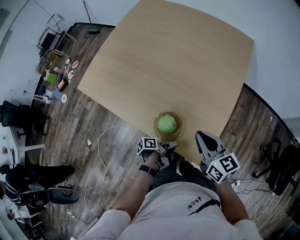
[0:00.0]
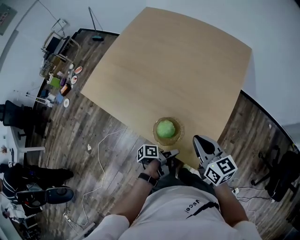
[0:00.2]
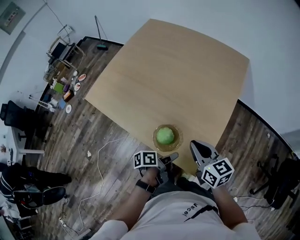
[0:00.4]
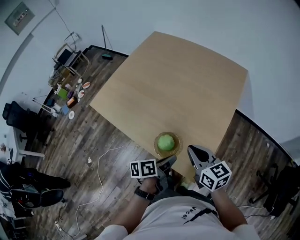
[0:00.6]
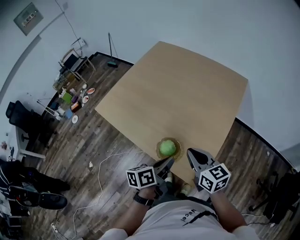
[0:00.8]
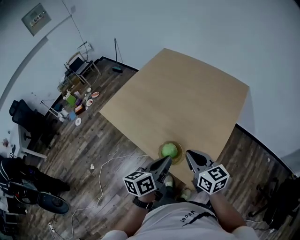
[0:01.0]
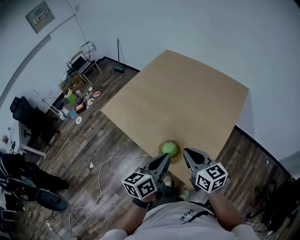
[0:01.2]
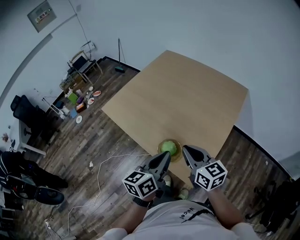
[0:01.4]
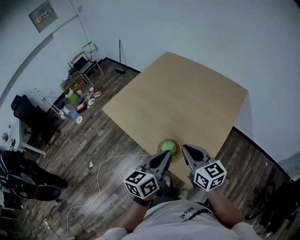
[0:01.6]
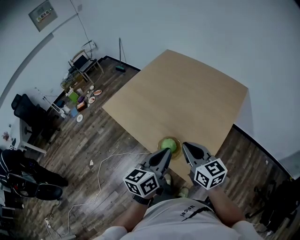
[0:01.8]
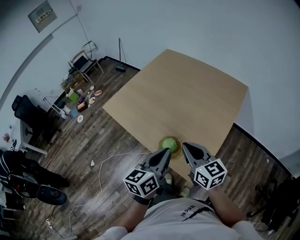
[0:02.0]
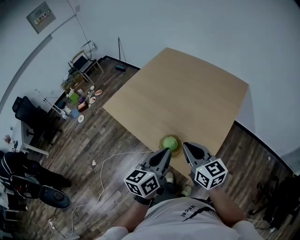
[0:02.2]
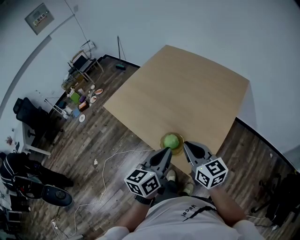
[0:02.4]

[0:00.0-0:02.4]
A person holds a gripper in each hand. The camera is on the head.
0:00.0 to 0:01.2: The right gripper shifts some 10 cm upward.

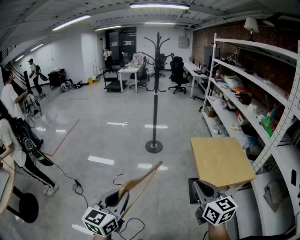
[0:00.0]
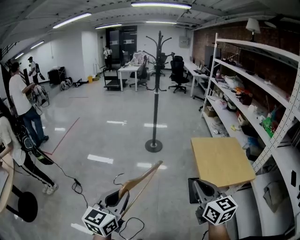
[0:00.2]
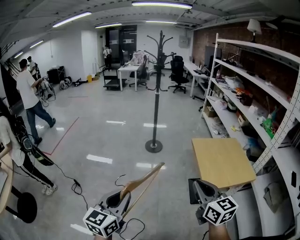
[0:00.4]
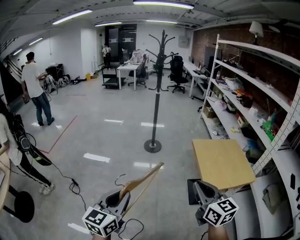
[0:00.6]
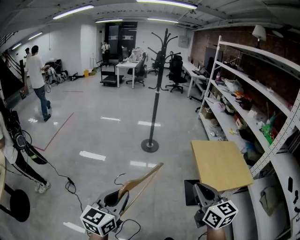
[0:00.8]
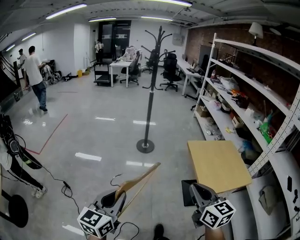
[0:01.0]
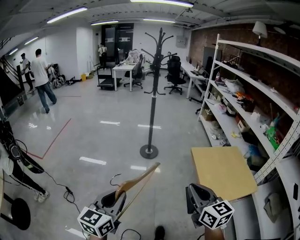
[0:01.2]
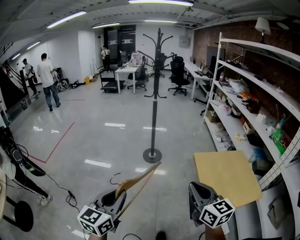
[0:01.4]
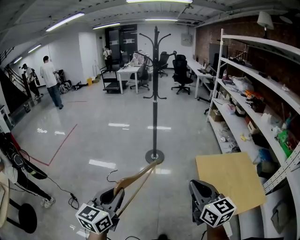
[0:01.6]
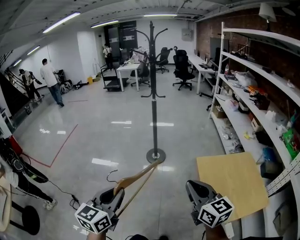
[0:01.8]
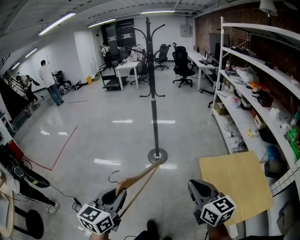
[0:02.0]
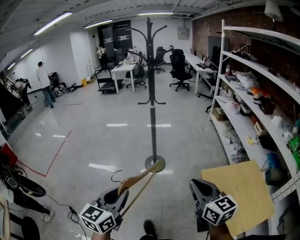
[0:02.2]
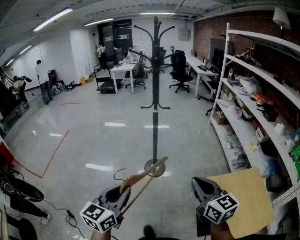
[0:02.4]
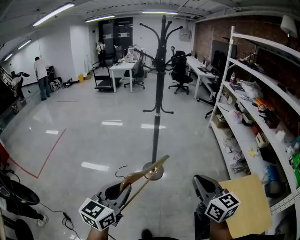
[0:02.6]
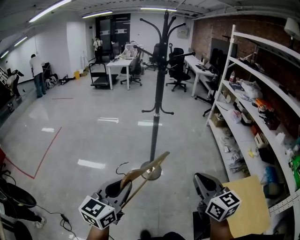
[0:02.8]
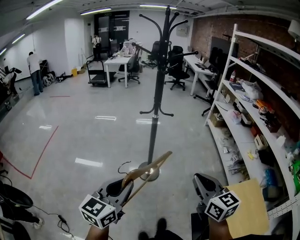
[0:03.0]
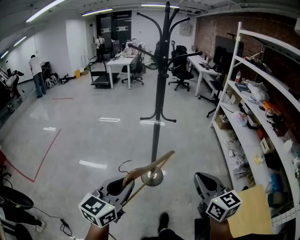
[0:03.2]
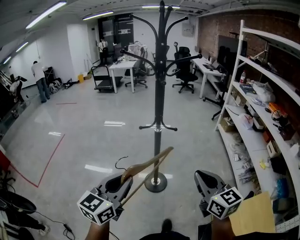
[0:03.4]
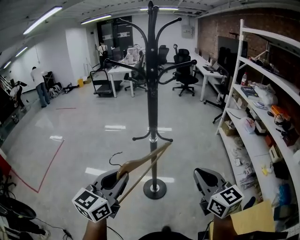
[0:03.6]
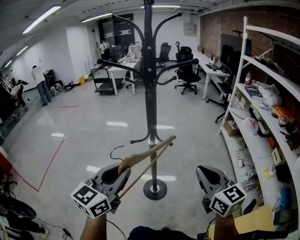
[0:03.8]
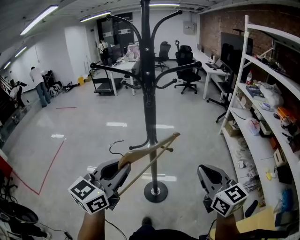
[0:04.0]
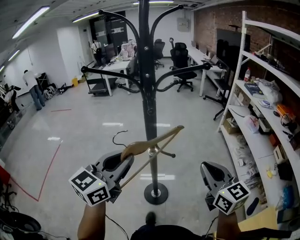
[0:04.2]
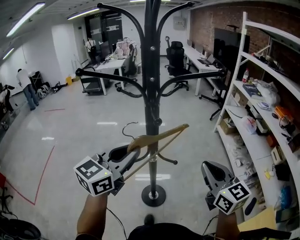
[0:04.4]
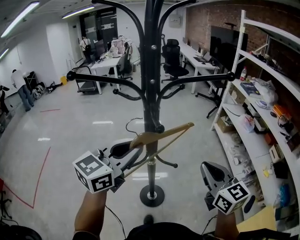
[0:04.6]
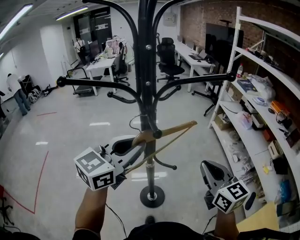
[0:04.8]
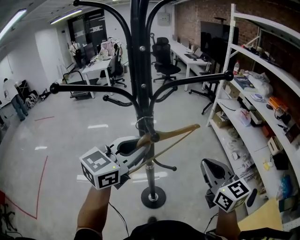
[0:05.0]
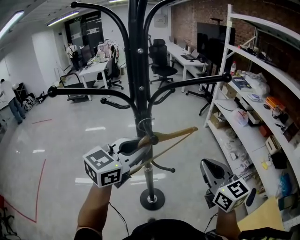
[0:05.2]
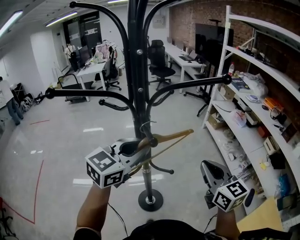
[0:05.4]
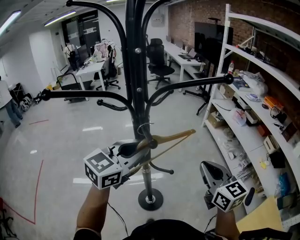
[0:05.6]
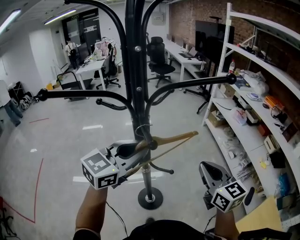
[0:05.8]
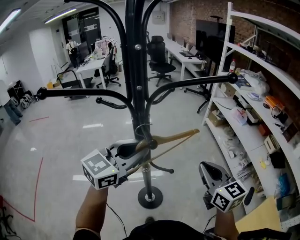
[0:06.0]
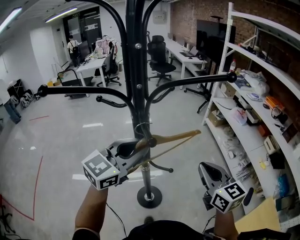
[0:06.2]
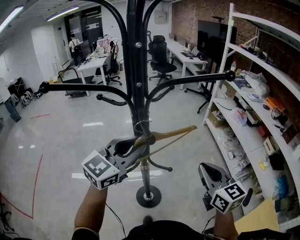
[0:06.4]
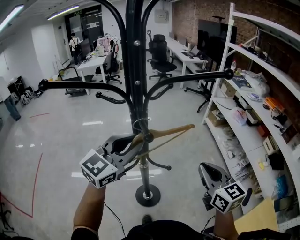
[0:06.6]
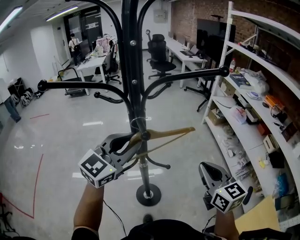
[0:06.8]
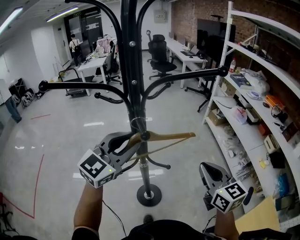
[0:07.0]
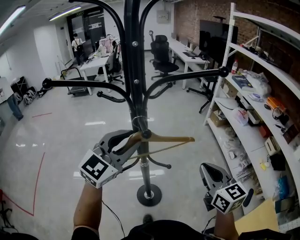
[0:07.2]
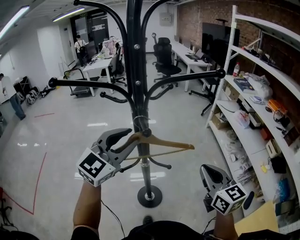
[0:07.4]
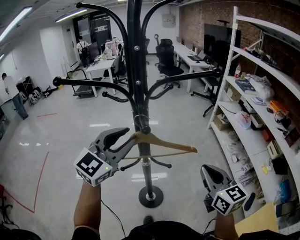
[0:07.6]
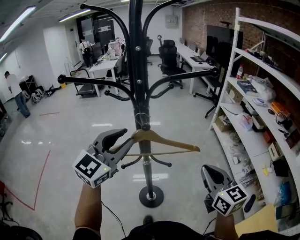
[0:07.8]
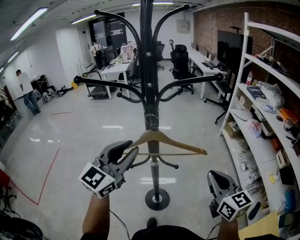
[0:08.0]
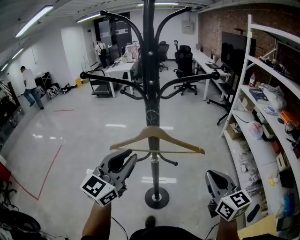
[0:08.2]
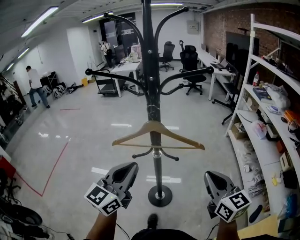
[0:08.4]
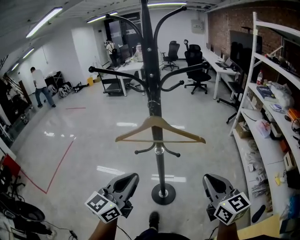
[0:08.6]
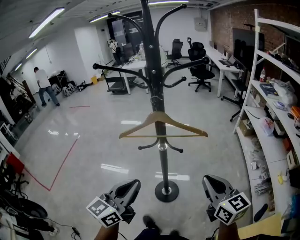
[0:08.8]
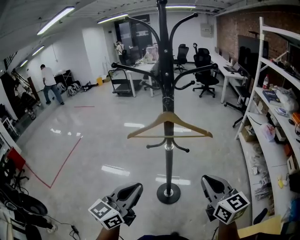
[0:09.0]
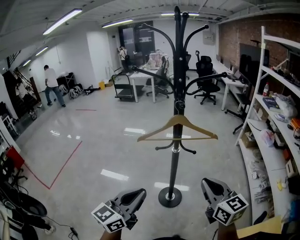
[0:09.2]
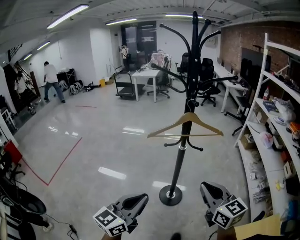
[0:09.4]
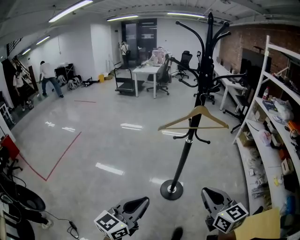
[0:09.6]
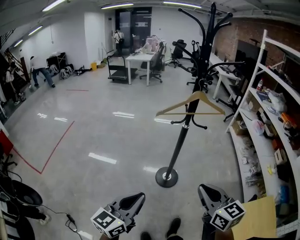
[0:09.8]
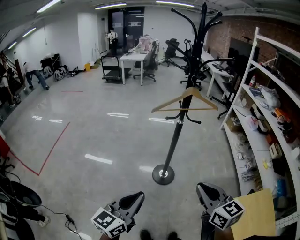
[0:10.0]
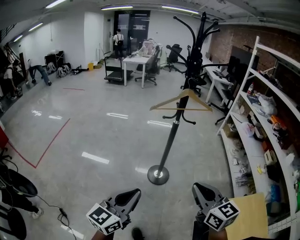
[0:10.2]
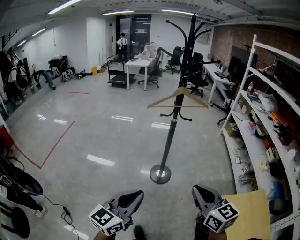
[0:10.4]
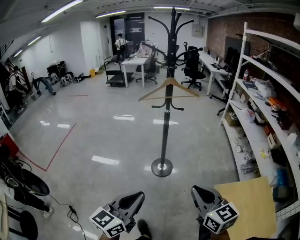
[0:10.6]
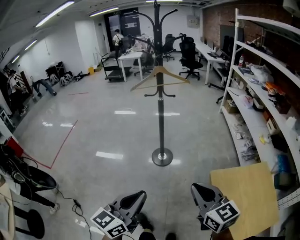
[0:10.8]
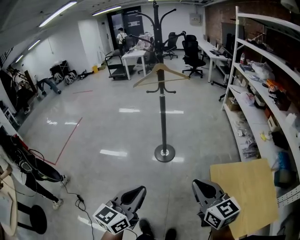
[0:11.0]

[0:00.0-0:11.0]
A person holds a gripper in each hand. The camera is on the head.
0:00.0 to 0:01.6: The grippers both shift forward by some 25 cm.
0:01.6 to 0:03.2: The two grippers travel together, forward, some 40 cm.
0:03.2 to 0:04.8: The two grippers go about 35 cm forward. The left gripper changes its angle by some 20 degrees.
0:04.8 to 0:06.2: The left gripper changes place by roughly 5 cm.
0:06.2 to 0:07.8: The left gripper moves roughly 5 cm, and rotates about 20 degrees.
0:07.8 to 0:09.4: The left gripper moves backward, approximately 35 cm, turns by roughly 30 degrees, and closes up, while the right gripper is displaced backward and to the left by some 20 cm.
0:09.4 to 0:11.0: The two grippers go approximately 35 cm backward.

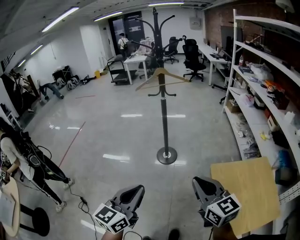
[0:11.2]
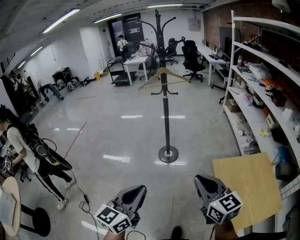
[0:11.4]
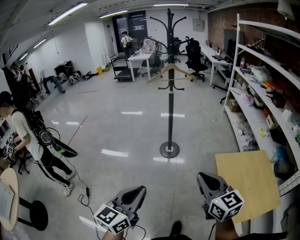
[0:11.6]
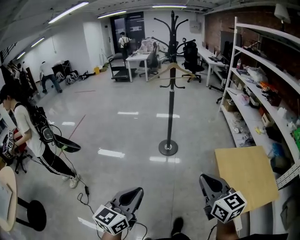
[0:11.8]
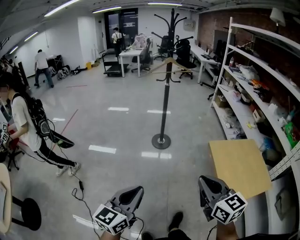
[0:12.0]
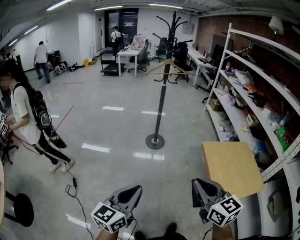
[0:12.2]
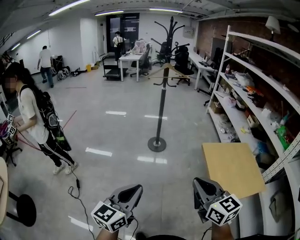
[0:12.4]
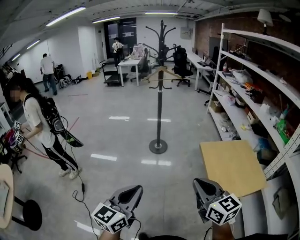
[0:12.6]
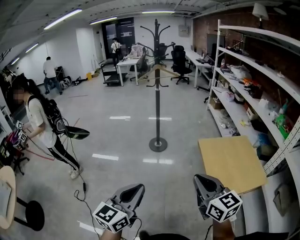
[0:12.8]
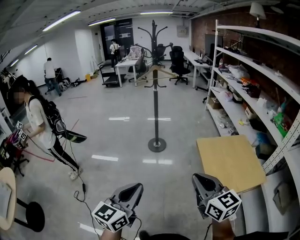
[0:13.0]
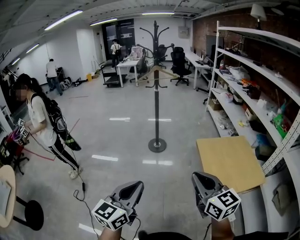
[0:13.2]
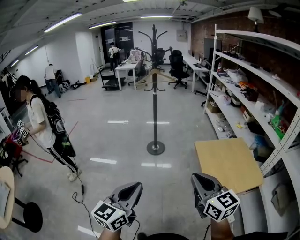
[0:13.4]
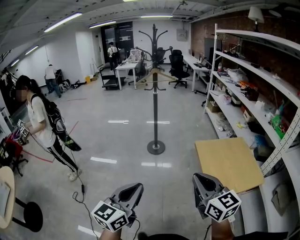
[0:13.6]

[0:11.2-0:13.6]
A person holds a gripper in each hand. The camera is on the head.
0:11.2 to 0:12.4: The grippers both shift backward by about 25 cm.
0:12.4 to 0:13.6: The grippers both shift to the right by roughly 10 cm.

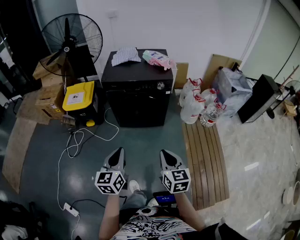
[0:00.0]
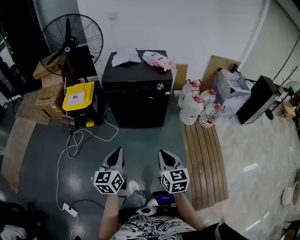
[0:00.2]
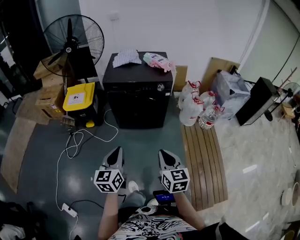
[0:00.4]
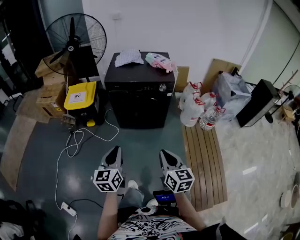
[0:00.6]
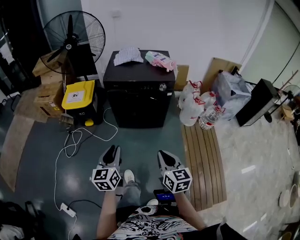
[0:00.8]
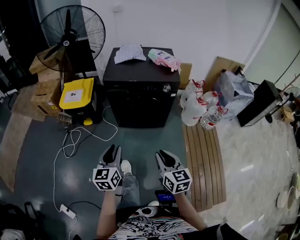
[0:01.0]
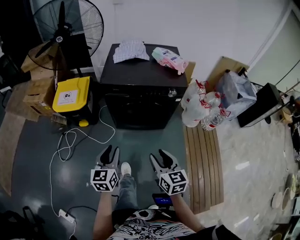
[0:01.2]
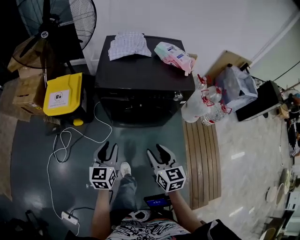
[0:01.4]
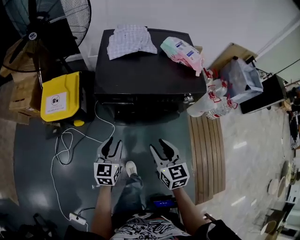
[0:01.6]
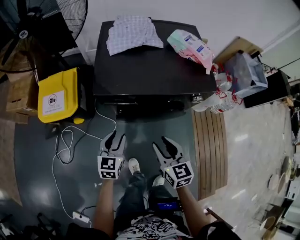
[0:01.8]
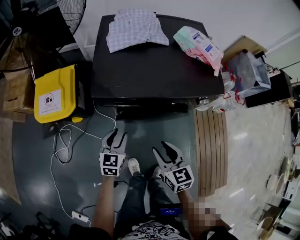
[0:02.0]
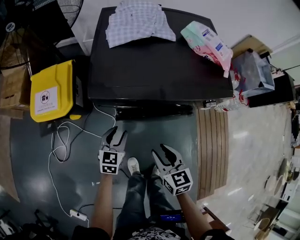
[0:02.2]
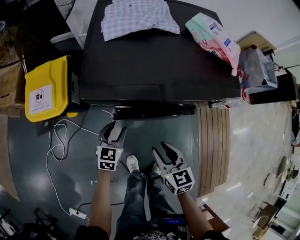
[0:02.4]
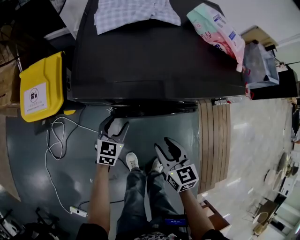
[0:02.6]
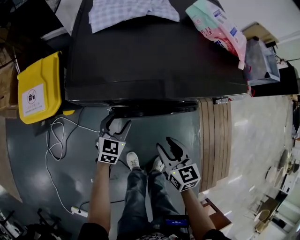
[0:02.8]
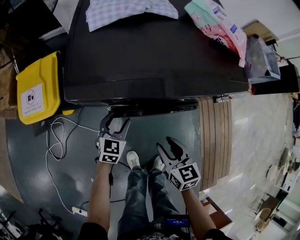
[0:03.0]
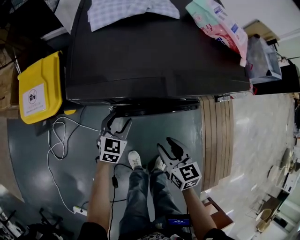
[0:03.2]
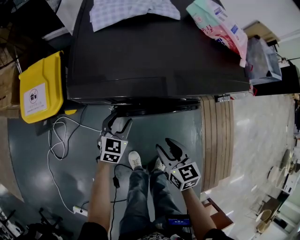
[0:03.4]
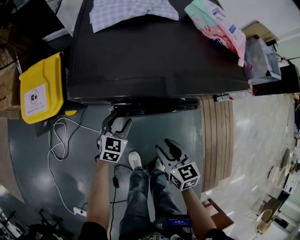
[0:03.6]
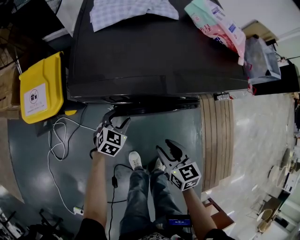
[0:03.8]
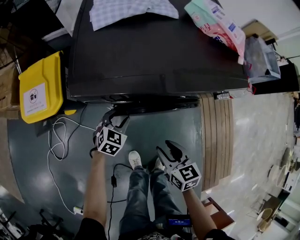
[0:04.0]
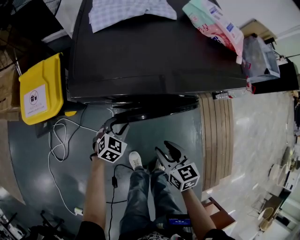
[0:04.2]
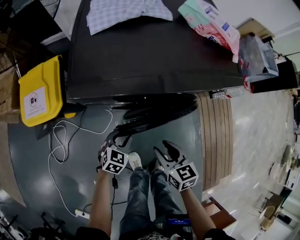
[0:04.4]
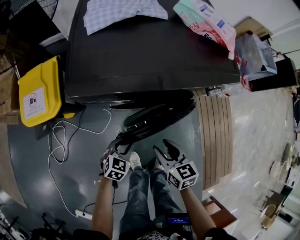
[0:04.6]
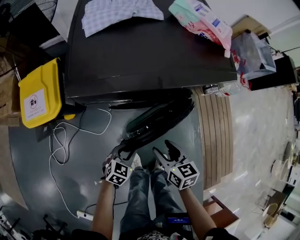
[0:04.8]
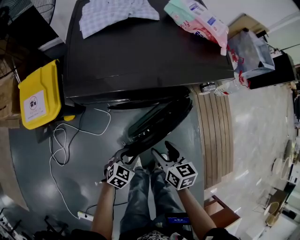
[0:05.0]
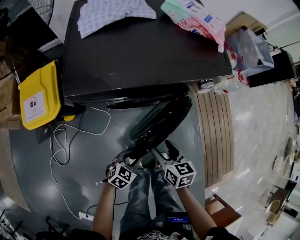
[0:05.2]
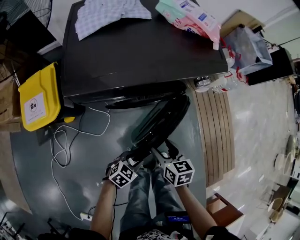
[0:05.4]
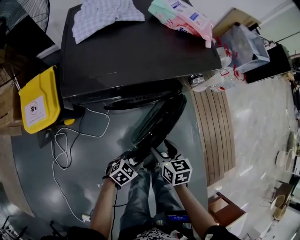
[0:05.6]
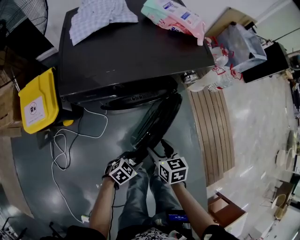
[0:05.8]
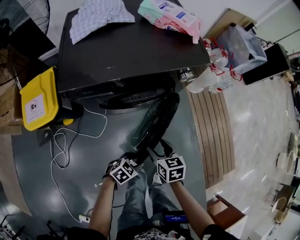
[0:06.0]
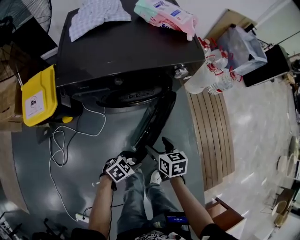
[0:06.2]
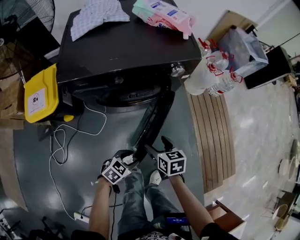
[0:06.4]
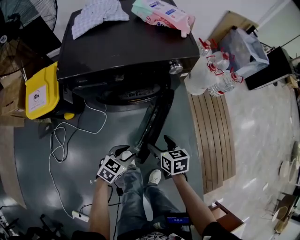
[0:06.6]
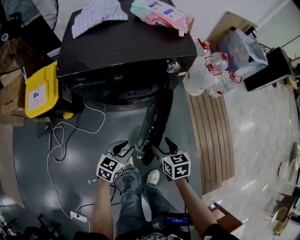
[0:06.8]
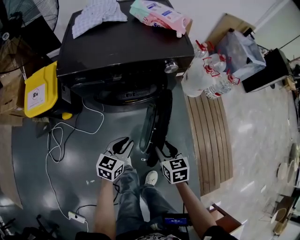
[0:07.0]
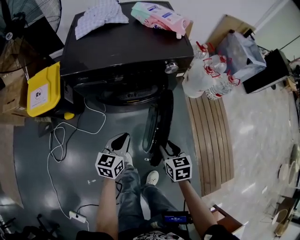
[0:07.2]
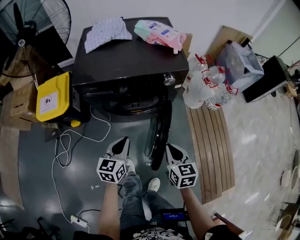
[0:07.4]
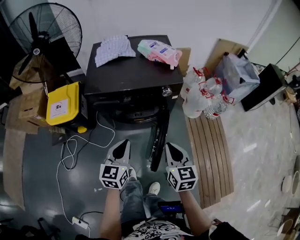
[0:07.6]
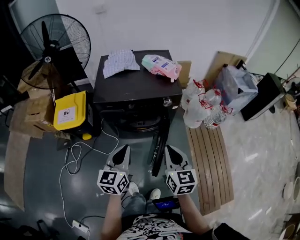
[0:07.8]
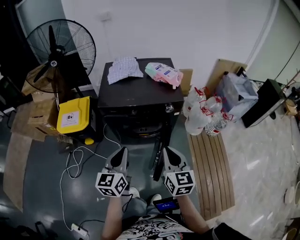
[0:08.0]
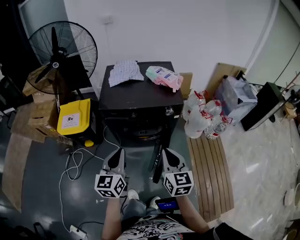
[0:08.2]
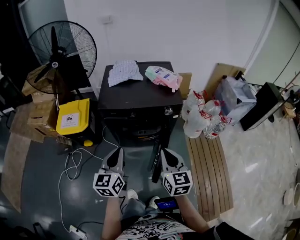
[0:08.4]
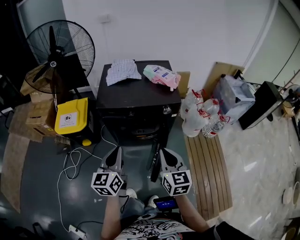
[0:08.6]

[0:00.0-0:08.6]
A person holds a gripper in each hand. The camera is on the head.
0:00.0 to 0:01.4: The left gripper moves forward and downward, roughly 30 cm, and opens up; the right gripper moves forward and to the left, about 30 cm, and opens up.
0:01.4 to 0:02.8: The grippers both shift downward and forward by about 30 cm. The left gripper swivels about 30 degrees, and opens up.
0:02.8 to 0:04.4: The left gripper travels backward by roughly 10 cm, and closes.
0:04.4 to 0:05.8: The left gripper changes place by some 20 cm, and changes its angle by approximately 30 degrees; the right gripper changes place by roughly 5 cm.
0:05.8 to 0:07.2: The right gripper shifts by approximately 15 cm, while the left gripper travels upward by approximately 10 cm, turns by about 50 degrees, and closes up.
0:07.2 to 0:08.6: The two grippers go some 30 cm upward. The right gripper angles its fingers upward, by about 30 degrees, and closes its fingers; the left gripper swivels some 30 degrees.
